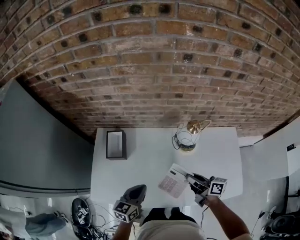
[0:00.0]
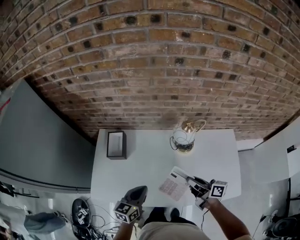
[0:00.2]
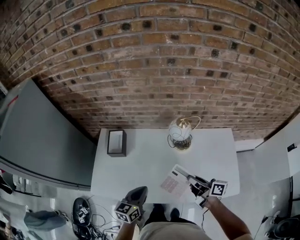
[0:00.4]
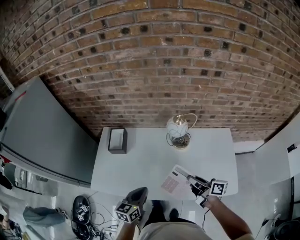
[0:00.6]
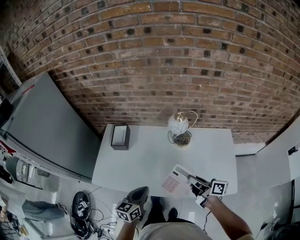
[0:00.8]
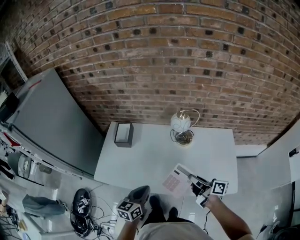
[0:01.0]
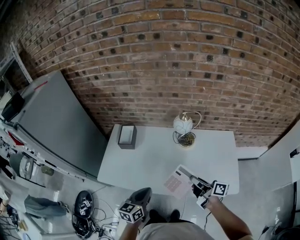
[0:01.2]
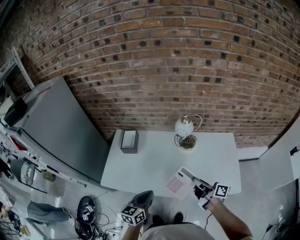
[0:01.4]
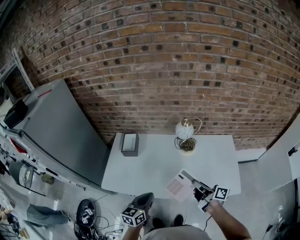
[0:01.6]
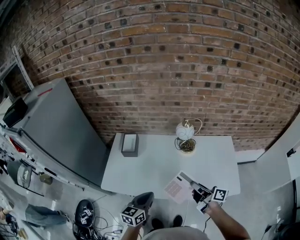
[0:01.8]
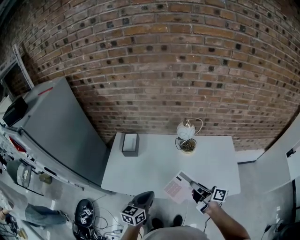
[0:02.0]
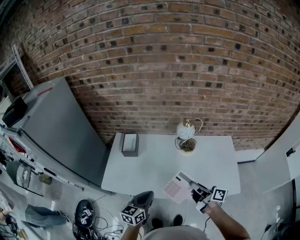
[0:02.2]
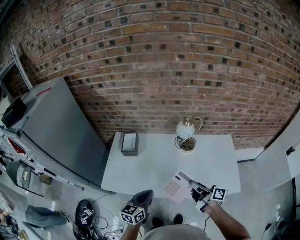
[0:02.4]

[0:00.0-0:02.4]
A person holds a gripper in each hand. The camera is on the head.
0:00.0 to 0:01.2: Both grippers travel together backward, some 20 cm.
0:01.2 to 0:02.4: The right gripper shifts about 5 cm to the left.

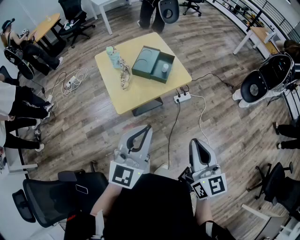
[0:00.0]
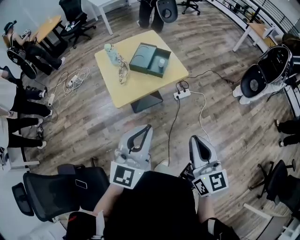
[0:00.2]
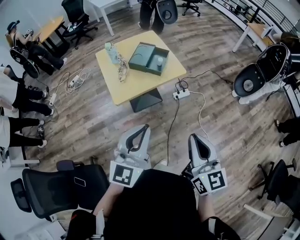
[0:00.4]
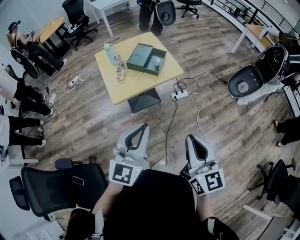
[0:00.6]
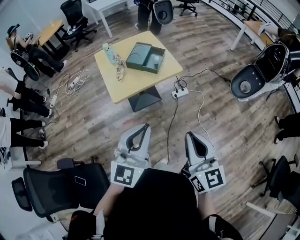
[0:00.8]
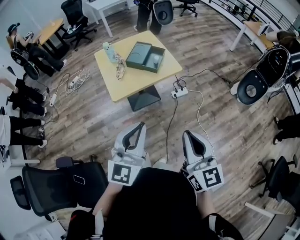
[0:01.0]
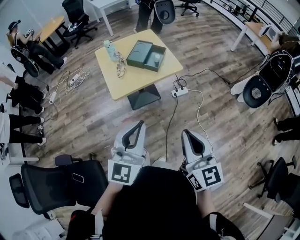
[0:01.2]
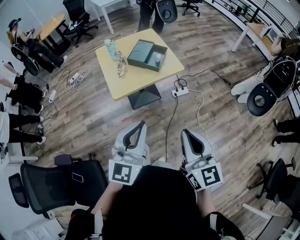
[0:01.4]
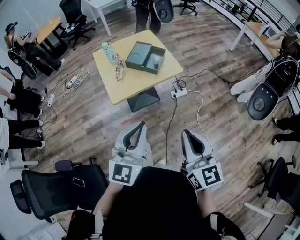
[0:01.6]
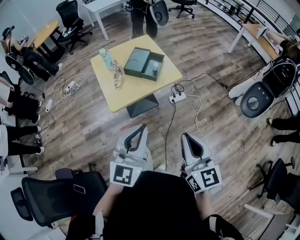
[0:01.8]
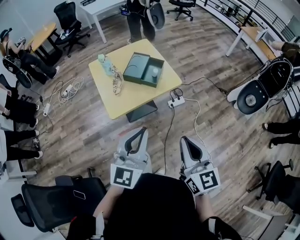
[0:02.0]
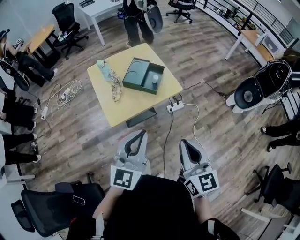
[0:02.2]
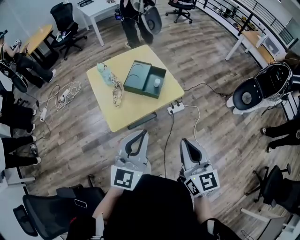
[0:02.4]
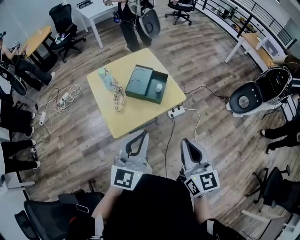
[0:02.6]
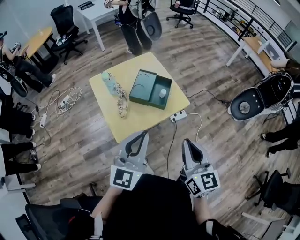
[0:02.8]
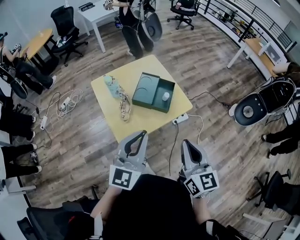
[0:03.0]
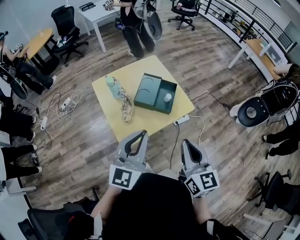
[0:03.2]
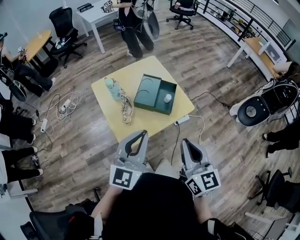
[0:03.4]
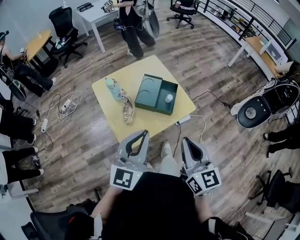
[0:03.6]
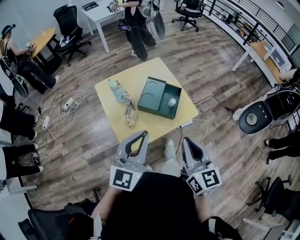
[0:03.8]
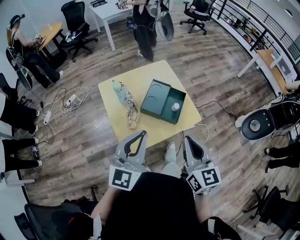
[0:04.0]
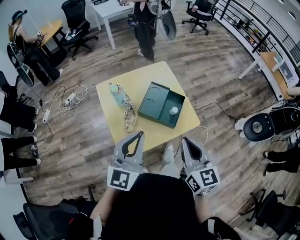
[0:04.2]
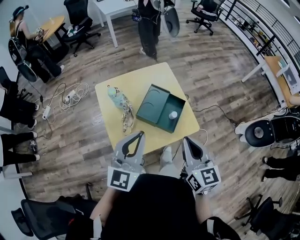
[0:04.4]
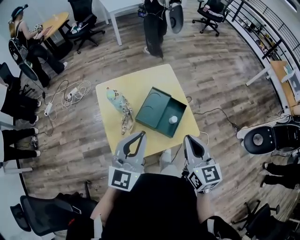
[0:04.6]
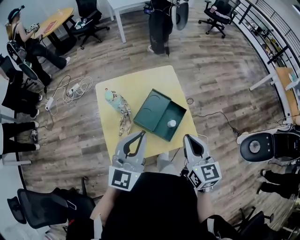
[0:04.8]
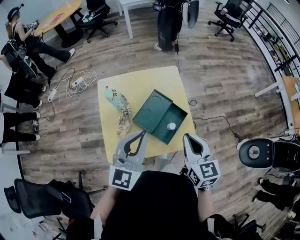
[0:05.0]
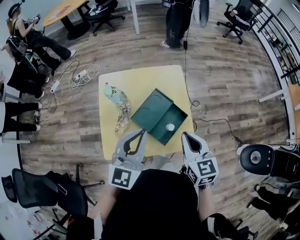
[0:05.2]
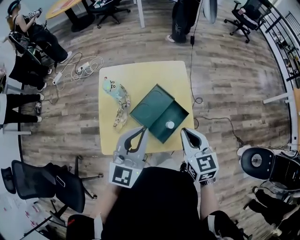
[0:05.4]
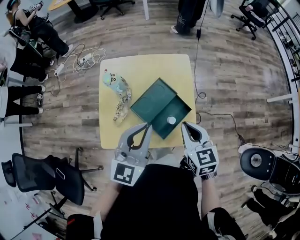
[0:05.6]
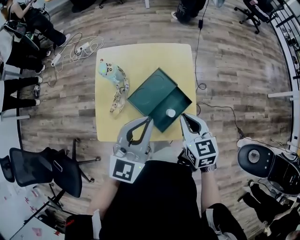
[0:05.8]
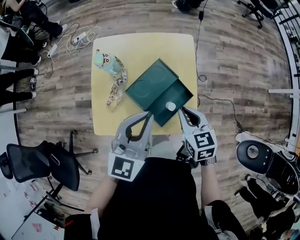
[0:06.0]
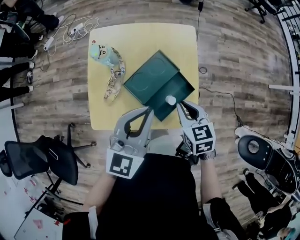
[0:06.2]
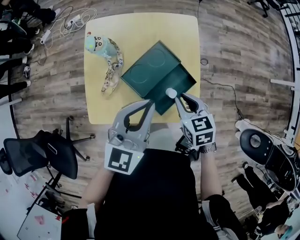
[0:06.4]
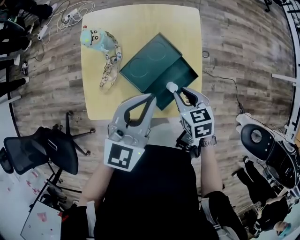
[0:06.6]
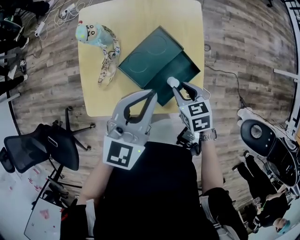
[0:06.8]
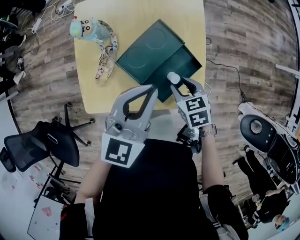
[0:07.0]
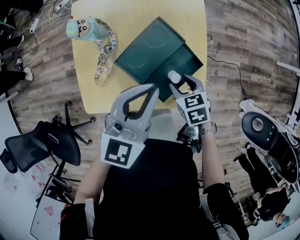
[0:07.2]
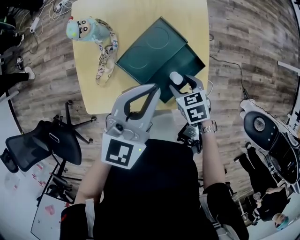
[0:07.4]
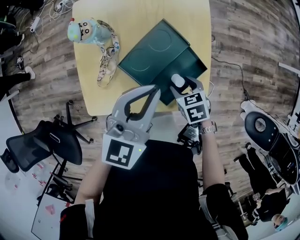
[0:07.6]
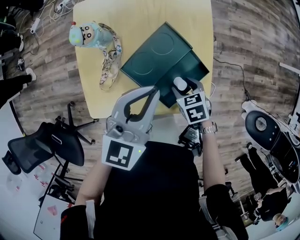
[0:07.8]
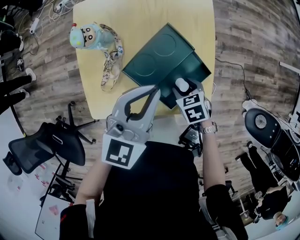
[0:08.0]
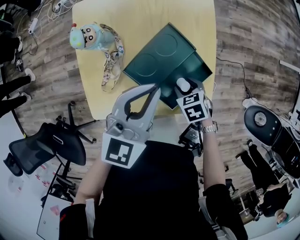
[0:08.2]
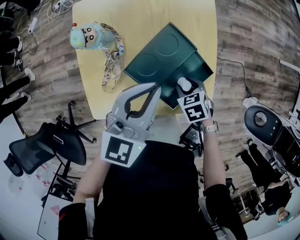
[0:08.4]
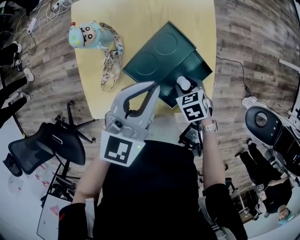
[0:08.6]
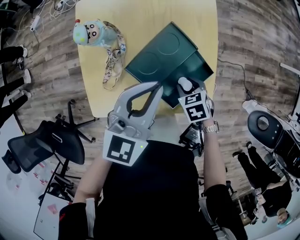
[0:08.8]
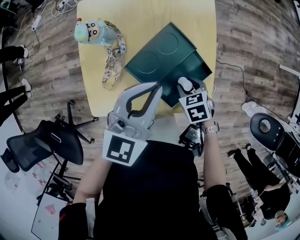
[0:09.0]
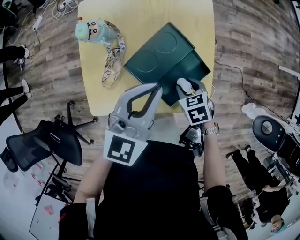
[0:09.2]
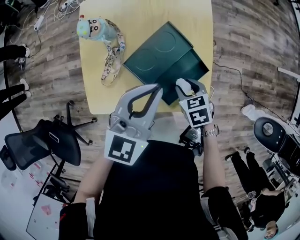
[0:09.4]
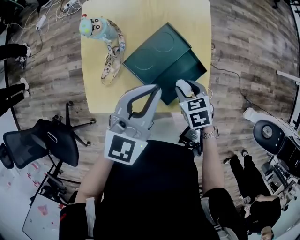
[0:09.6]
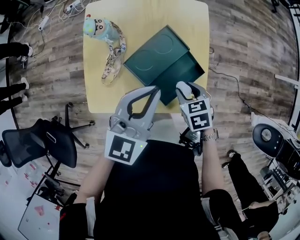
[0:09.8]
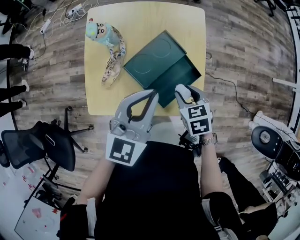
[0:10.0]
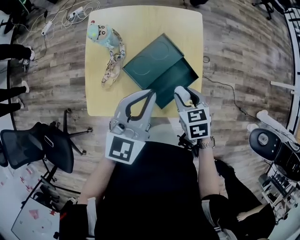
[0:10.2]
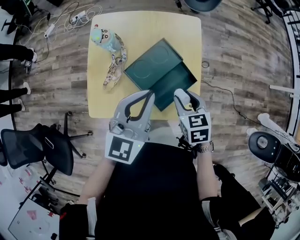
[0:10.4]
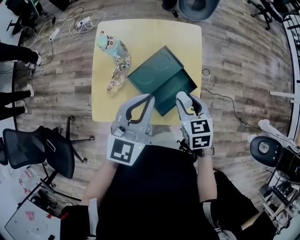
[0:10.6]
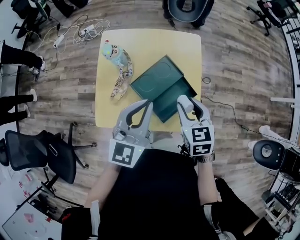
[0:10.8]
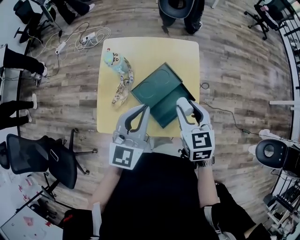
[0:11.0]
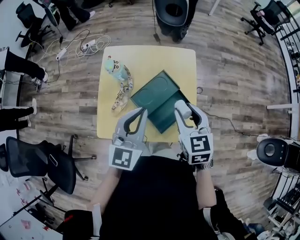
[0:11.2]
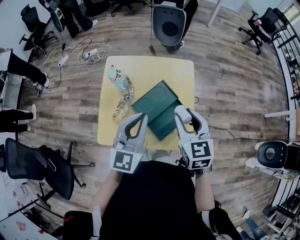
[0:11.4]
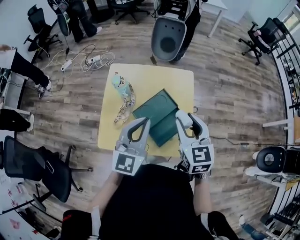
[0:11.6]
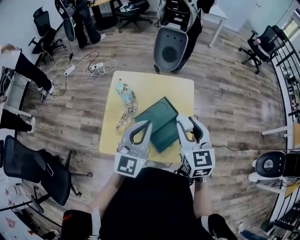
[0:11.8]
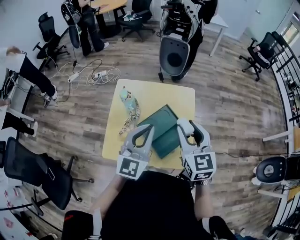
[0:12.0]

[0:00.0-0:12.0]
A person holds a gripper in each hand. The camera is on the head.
0:00.0 to 0:01.6: The right gripper heads backward, covering about 5 cm. Meanwhile the left gripper goes approximately 10 cm backward and to the right.
0:01.6 to 0:03.0: Both grippers travel together forward and to the left, about 25 cm.
0:03.0 to 0:04.4: The grippers both shift forward by some 15 cm.
0:04.4 to 0:06.0: The left gripper heads to the right, forward and downward, covering some 20 cm; the right gripper travels forward and downward by approximately 25 cm, and changes its angle by some 40 degrees.
0:06.0 to 0:07.6: The right gripper travels downward by roughly 20 cm, swivels approximately 30 degrees, and opens up, while the left gripper travels downward by roughly 10 cm.
0:07.6 to 0:09.0: The grippers move only a little.
0:09.0 to 0:10.4: The left gripper shifts about 5 cm backward, while the right gripper heads upward, covering roughly 15 cm, and turns by some 20 degrees.
0:10.4 to 0:12.0: The right gripper is displaced upward by some 25 cm, and points its fingers approximately 30 degrees further upward. Meanwhile the left gripper moves upward, roughly 10 cm.

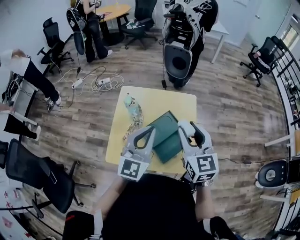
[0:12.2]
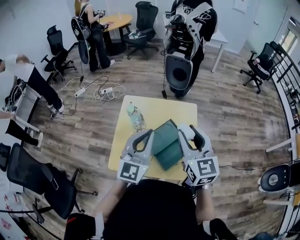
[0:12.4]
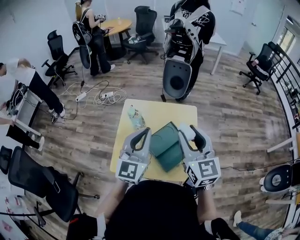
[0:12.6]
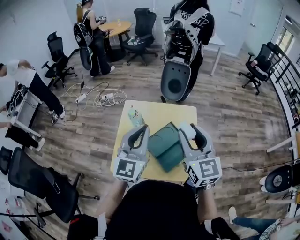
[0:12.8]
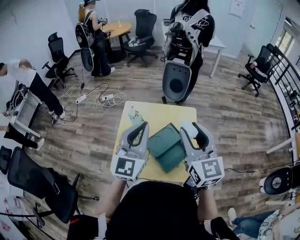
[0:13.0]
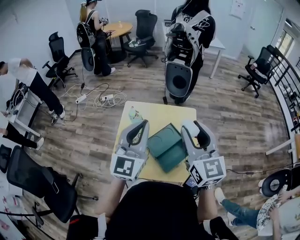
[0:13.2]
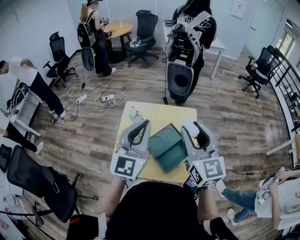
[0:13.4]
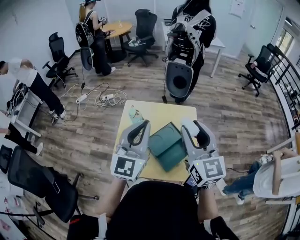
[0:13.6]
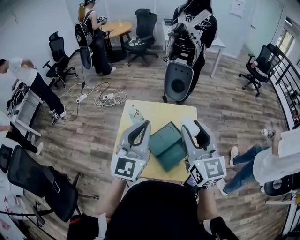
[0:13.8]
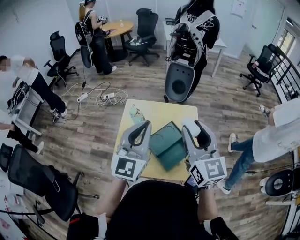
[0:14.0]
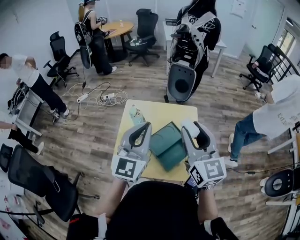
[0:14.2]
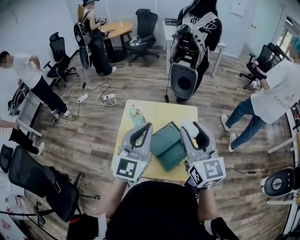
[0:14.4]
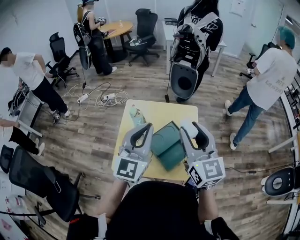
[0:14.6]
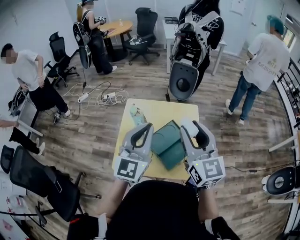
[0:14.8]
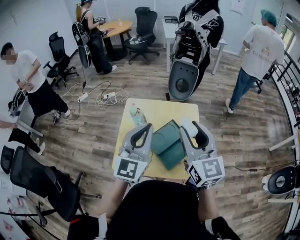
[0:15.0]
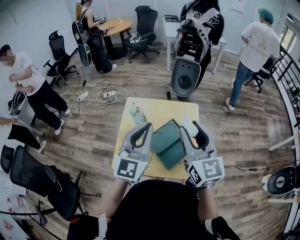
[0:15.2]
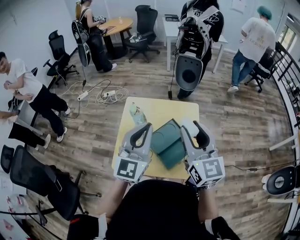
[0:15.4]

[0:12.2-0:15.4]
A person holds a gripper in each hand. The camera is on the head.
0:12.2 to 0:13.8: The left gripper goes roughly 10 cm upward and to the left. The right gripper moves upward, roughly 10 cm.
0:13.8 to 0:15.4: The right gripper moves some 5 cm to the left and comes back.

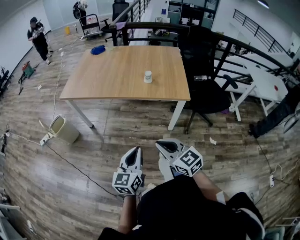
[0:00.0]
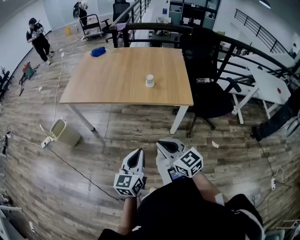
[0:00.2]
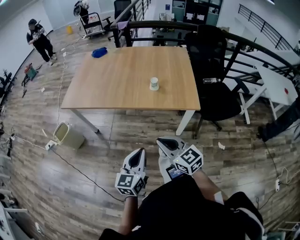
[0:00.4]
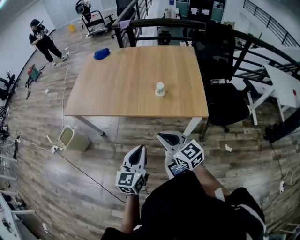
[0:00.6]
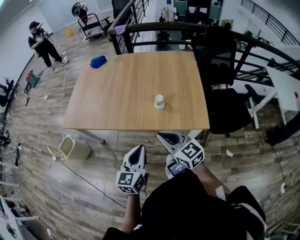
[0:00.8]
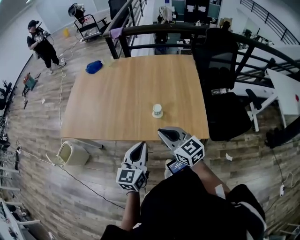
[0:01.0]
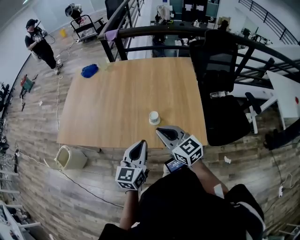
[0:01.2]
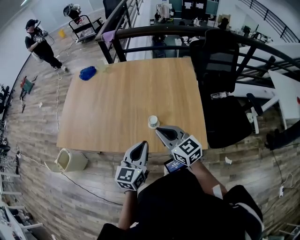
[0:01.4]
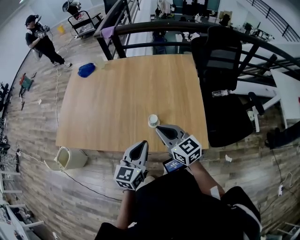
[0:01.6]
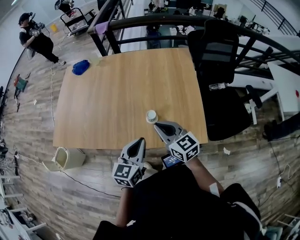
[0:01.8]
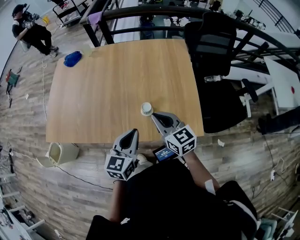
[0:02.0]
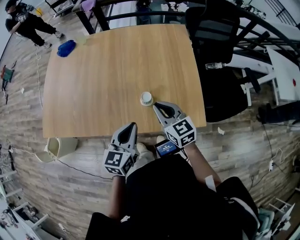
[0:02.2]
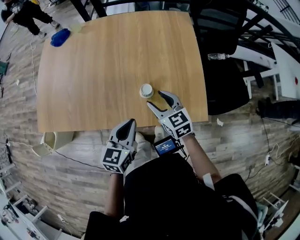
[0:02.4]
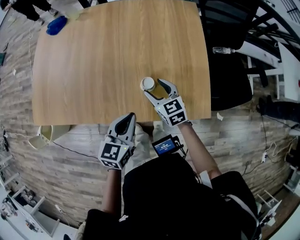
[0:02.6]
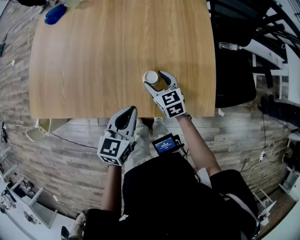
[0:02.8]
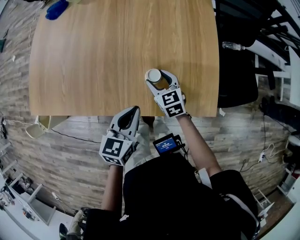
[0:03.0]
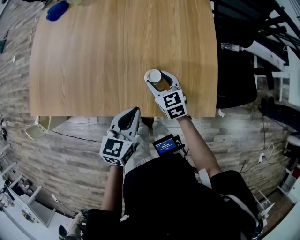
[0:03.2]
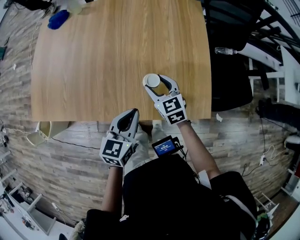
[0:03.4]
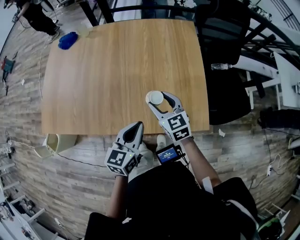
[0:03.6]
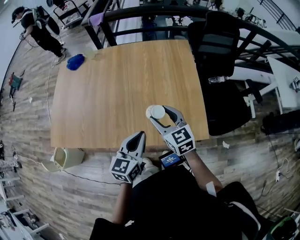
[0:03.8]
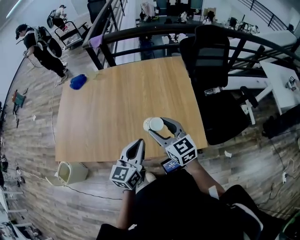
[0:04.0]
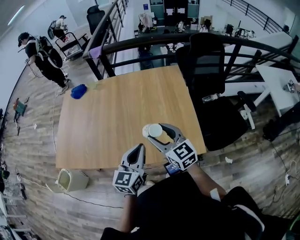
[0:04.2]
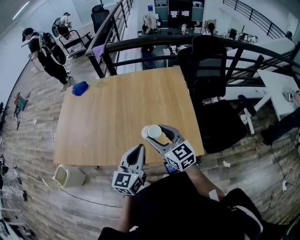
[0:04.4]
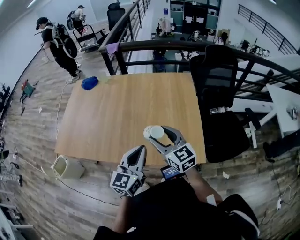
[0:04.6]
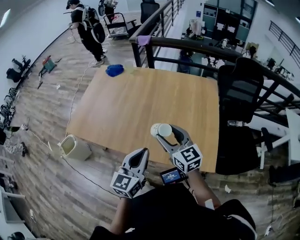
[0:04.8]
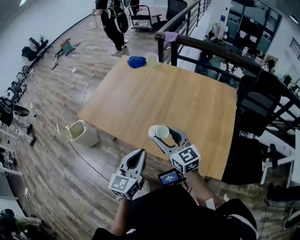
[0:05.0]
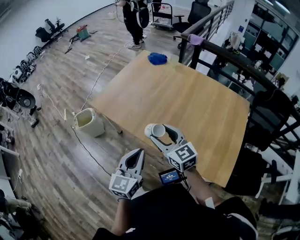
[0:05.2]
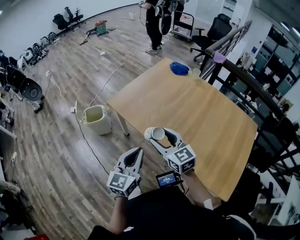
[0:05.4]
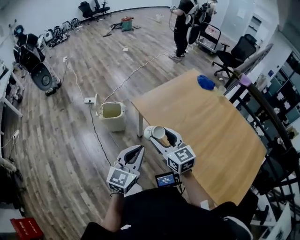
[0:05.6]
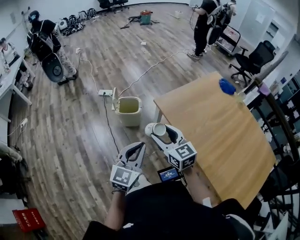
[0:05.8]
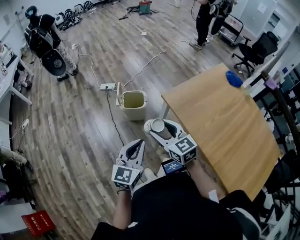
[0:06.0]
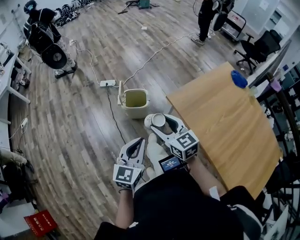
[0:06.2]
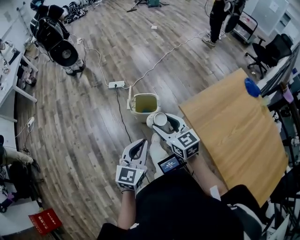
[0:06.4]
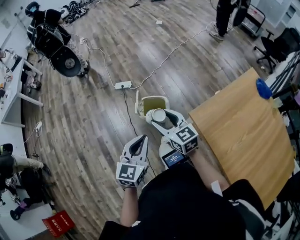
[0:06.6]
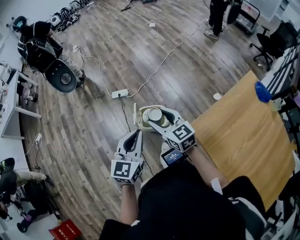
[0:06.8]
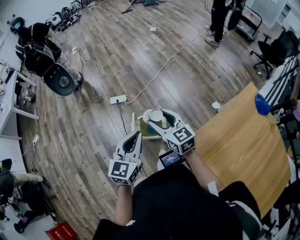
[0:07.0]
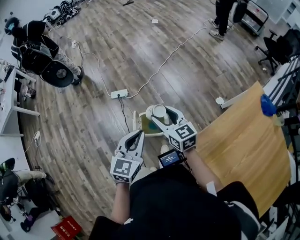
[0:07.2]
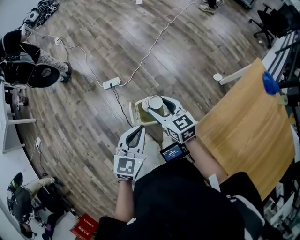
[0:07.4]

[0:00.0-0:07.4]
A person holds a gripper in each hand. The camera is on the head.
0:00.0 to 0:01.4: The two grippers travel together, forward, approximately 50 cm.
0:01.4 to 0:03.0: The left gripper goes about 15 cm downward and forward; the right gripper shifts some 30 cm downward and forward, turns by some 30 degrees, and opens its fingers.
0:03.0 to 0:04.4: The left gripper moves upward, approximately 15 cm, and turns by some 30 degrees. The right gripper moves upward and backward, roughly 30 cm, and changes its angle by about 30 degrees.
0:04.4 to 0:06.0: Both grippers are carried approximately 70 cm. The left gripper swivels roughly 60 degrees. Meanwhile the right gripper rotates approximately 60 degrees.
0:06.0 to 0:07.4: The pair of grippers is taken forward, approximately 50 cm.
